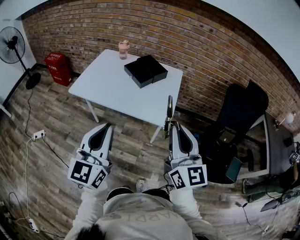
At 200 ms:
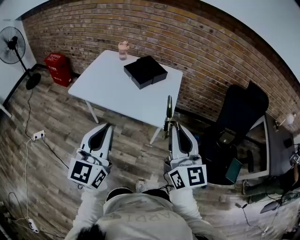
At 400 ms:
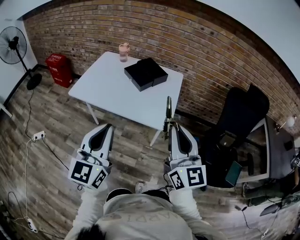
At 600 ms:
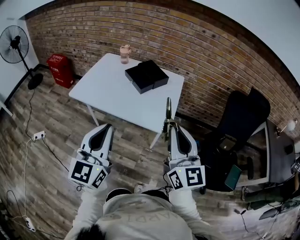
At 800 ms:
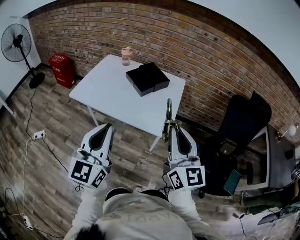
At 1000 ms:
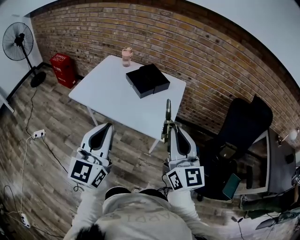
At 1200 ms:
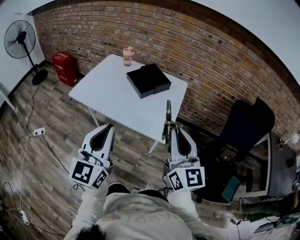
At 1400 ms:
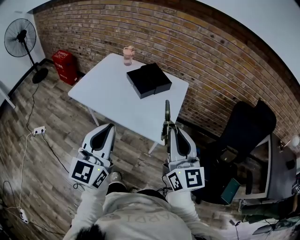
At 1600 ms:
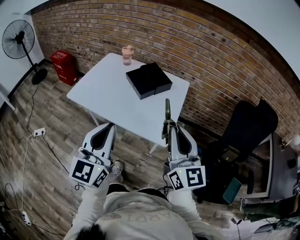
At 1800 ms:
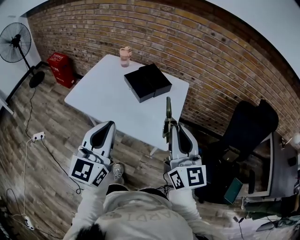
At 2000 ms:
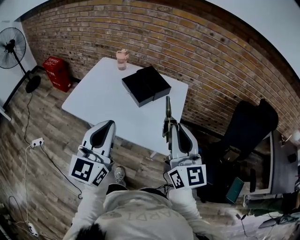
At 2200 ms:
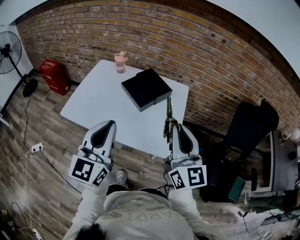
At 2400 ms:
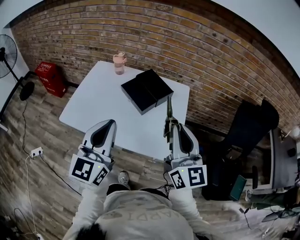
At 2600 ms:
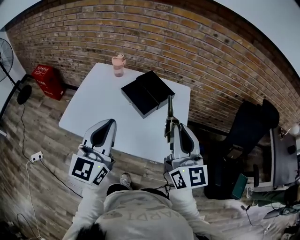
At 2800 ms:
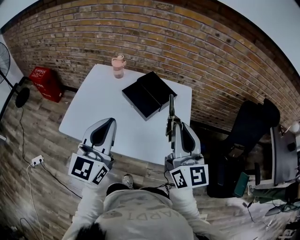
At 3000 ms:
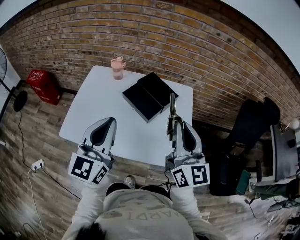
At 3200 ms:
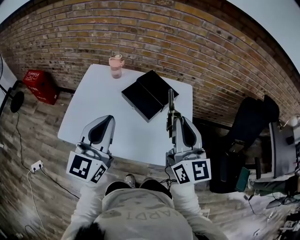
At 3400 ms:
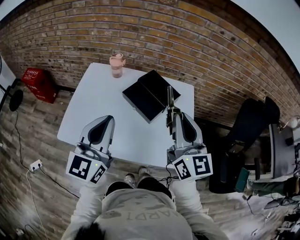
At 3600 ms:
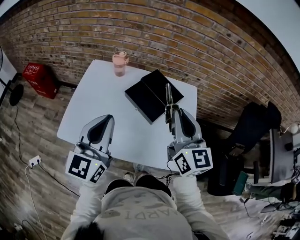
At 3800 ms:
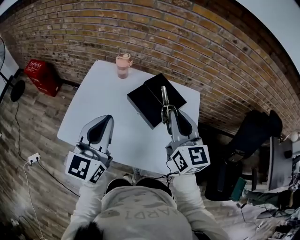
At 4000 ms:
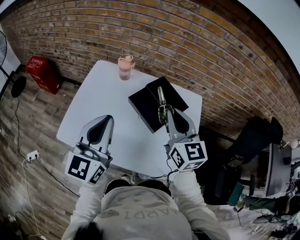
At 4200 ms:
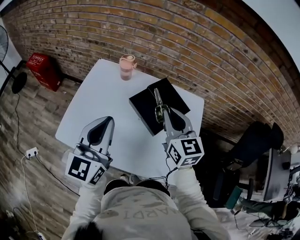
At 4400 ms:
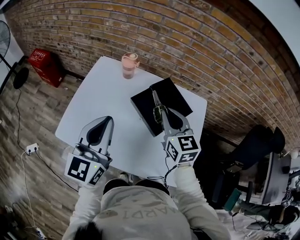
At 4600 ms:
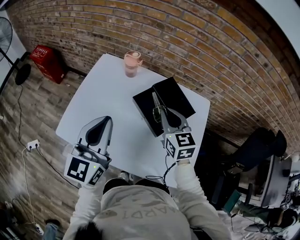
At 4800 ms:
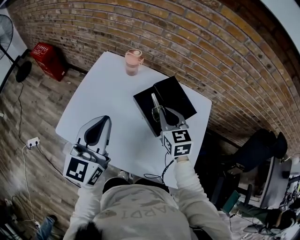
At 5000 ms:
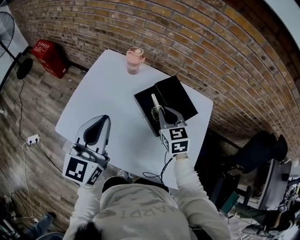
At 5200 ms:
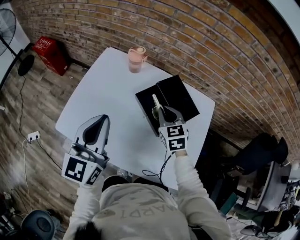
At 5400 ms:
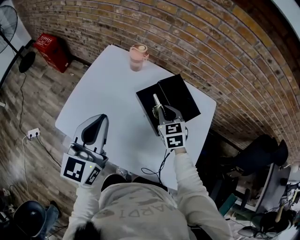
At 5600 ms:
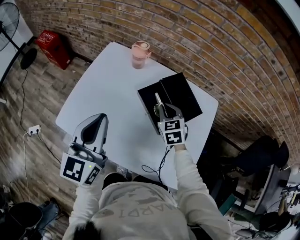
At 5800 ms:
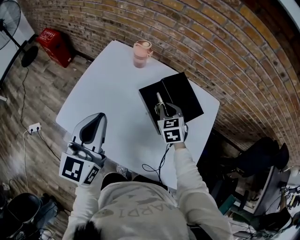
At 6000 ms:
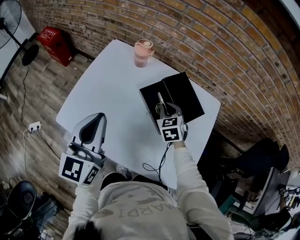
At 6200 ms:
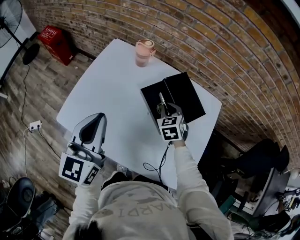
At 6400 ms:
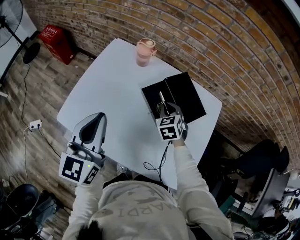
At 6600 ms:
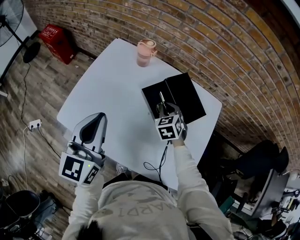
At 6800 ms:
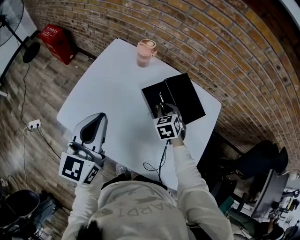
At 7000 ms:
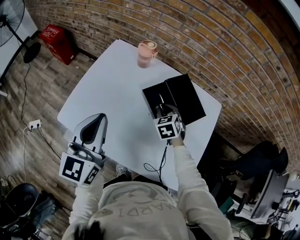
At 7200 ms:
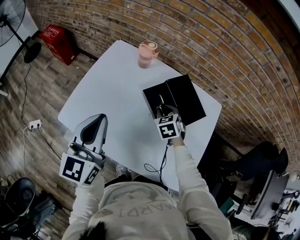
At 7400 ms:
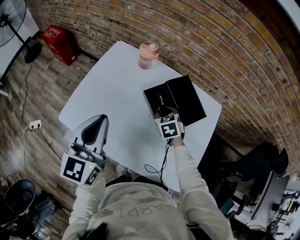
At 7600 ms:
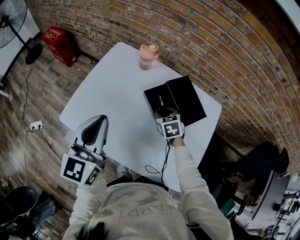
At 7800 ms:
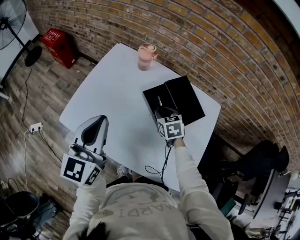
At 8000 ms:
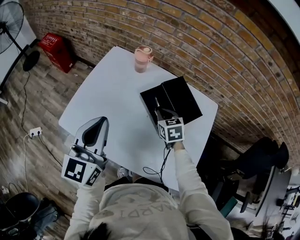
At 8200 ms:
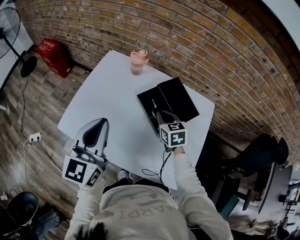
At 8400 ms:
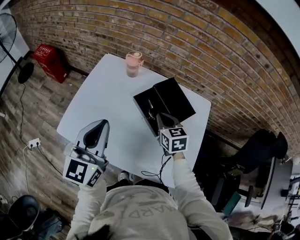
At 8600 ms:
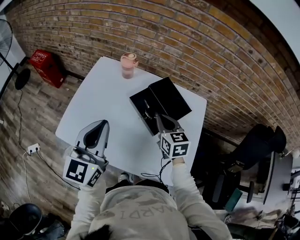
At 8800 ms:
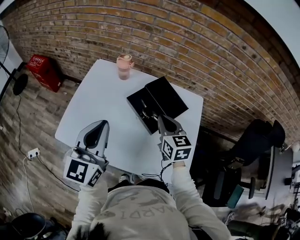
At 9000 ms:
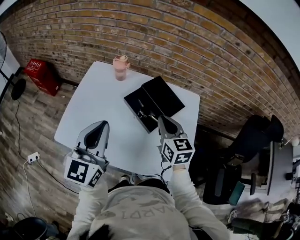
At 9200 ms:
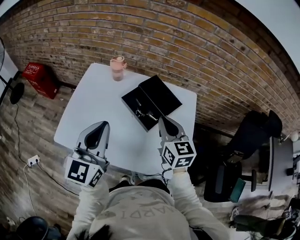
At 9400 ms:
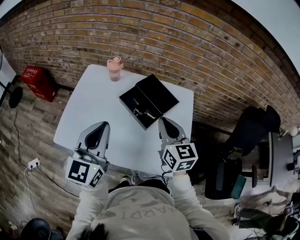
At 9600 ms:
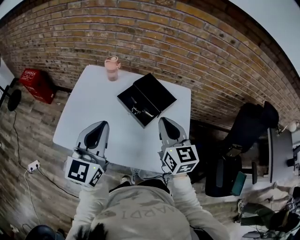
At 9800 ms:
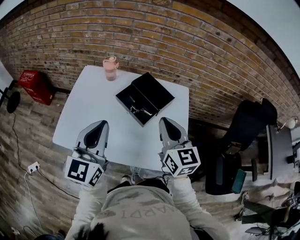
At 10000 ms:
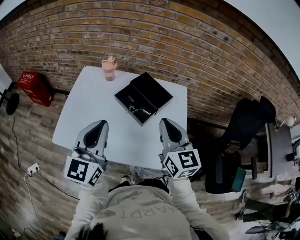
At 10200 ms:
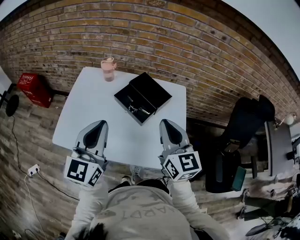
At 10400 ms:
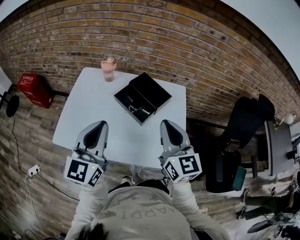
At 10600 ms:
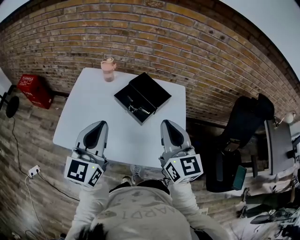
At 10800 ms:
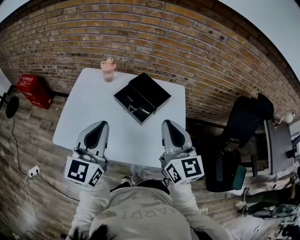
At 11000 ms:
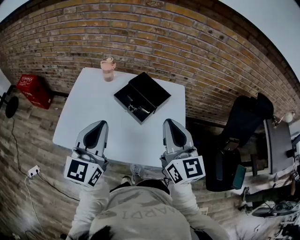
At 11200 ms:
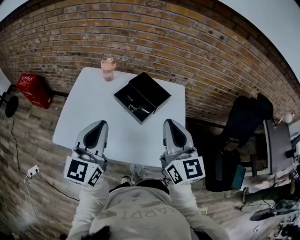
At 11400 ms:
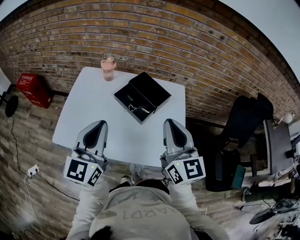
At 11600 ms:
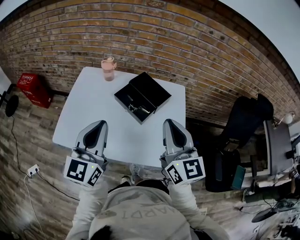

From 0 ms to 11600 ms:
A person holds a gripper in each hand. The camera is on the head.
From 0 ms to 1400 ms: The grippers both shift forward by some 10 cm.
From 1400 ms to 2800 ms: Both grippers move forward and to the left, about 25 cm.
From 2800 ms to 4400 ms: The right gripper moves forward, downward and to the left, about 30 cm, and changes its angle by approximately 30 degrees. The left gripper moves forward and to the left, roughly 15 cm.
From 4400 ms to 5800 ms: The right gripper is displaced downward and forward by about 20 cm, and changes its angle by approximately 30 degrees.
From 5800 ms to 7200 ms: The grippers make only small movements.
From 7200 ms to 8800 ms: The left gripper moves approximately 5 cm. The right gripper moves upward and backward, roughly 20 cm, and swivels some 40 degrees.
From 8800 ms to 10200 ms: The right gripper is displaced backward and upward by roughly 20 cm, and swivels some 20 degrees, while the left gripper goes roughly 5 cm backward.
From 10200 ms to 11600 ms: The right gripper moves some 5 cm.

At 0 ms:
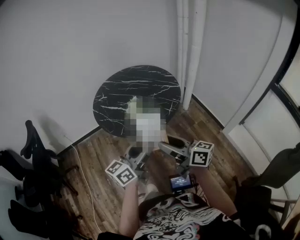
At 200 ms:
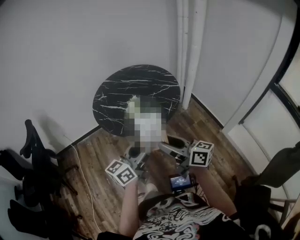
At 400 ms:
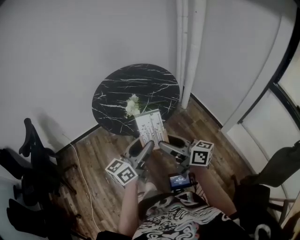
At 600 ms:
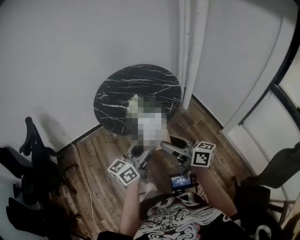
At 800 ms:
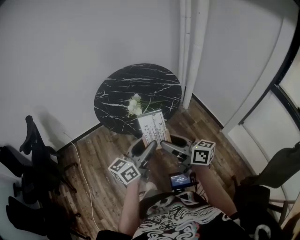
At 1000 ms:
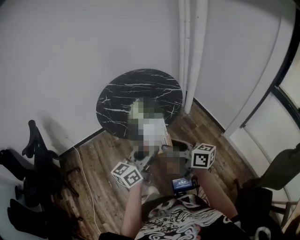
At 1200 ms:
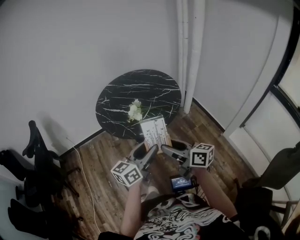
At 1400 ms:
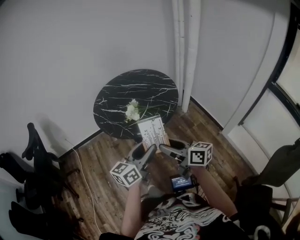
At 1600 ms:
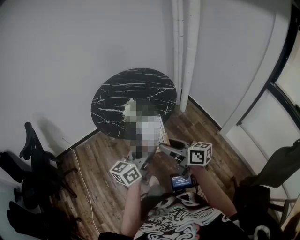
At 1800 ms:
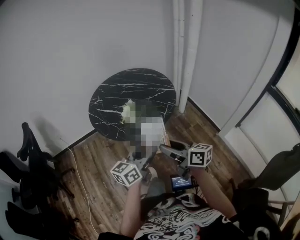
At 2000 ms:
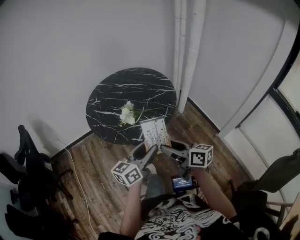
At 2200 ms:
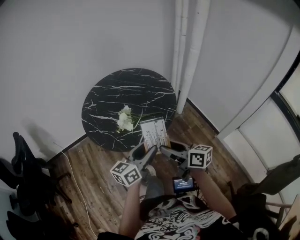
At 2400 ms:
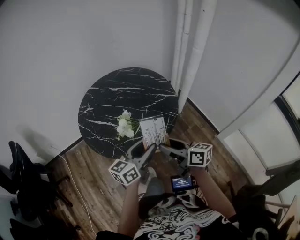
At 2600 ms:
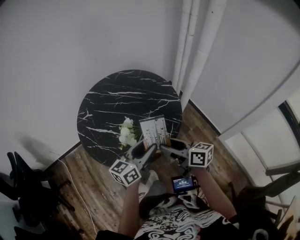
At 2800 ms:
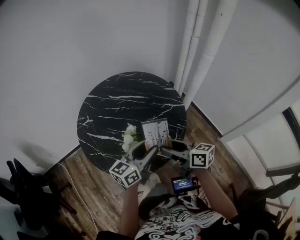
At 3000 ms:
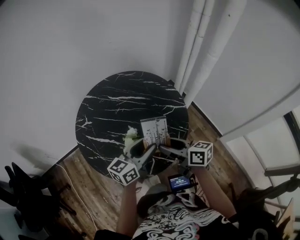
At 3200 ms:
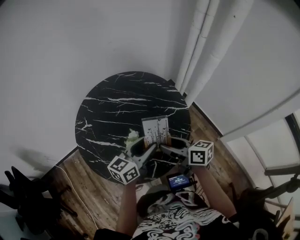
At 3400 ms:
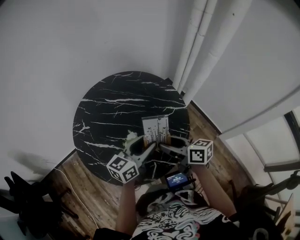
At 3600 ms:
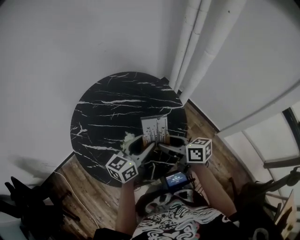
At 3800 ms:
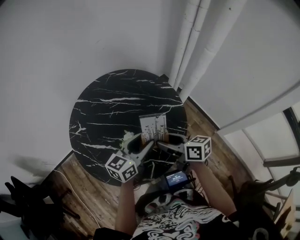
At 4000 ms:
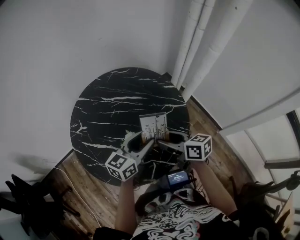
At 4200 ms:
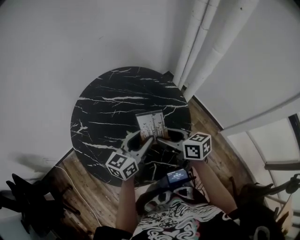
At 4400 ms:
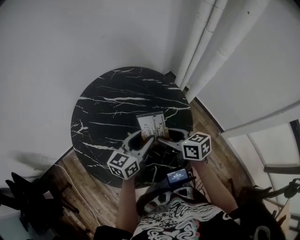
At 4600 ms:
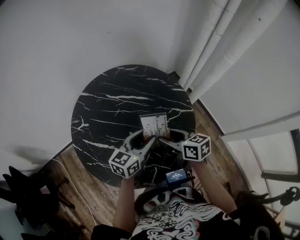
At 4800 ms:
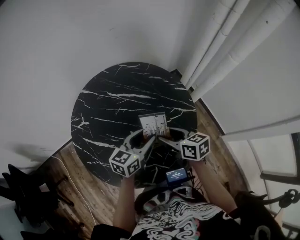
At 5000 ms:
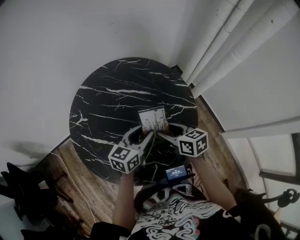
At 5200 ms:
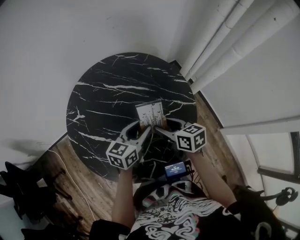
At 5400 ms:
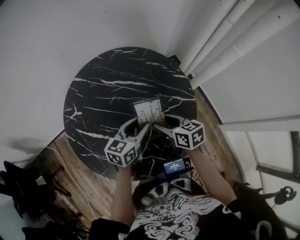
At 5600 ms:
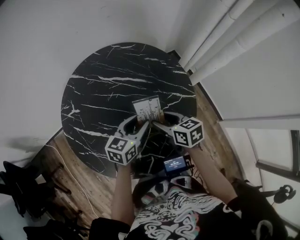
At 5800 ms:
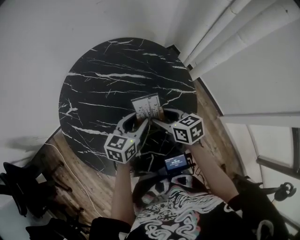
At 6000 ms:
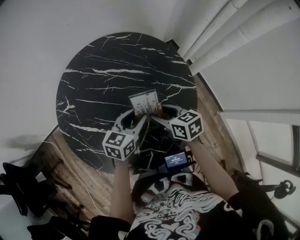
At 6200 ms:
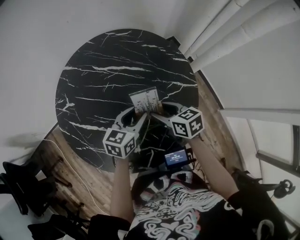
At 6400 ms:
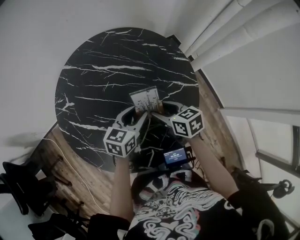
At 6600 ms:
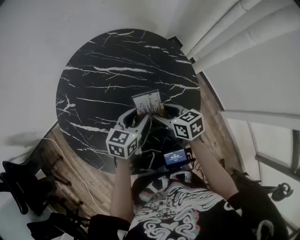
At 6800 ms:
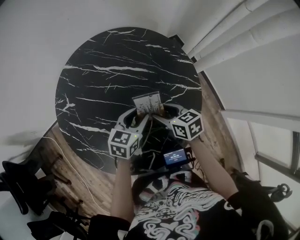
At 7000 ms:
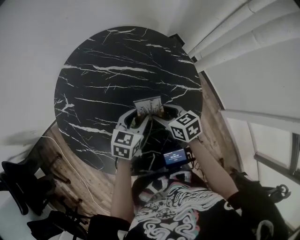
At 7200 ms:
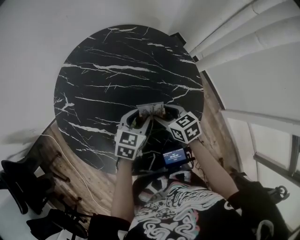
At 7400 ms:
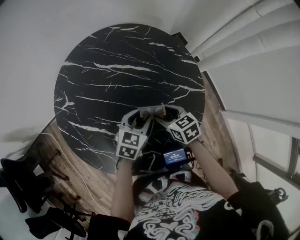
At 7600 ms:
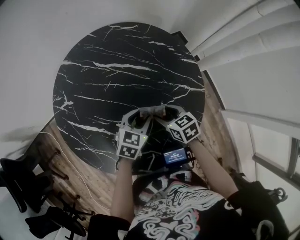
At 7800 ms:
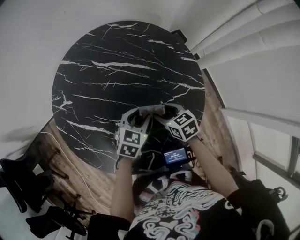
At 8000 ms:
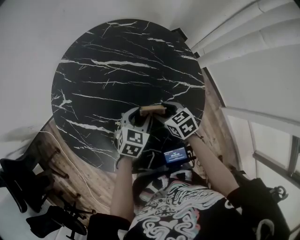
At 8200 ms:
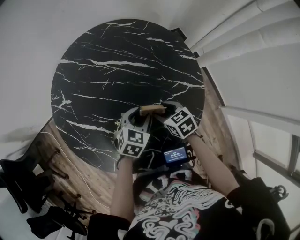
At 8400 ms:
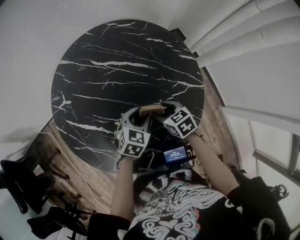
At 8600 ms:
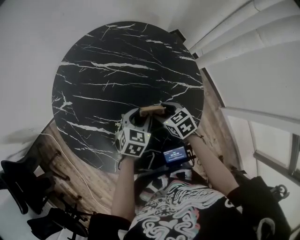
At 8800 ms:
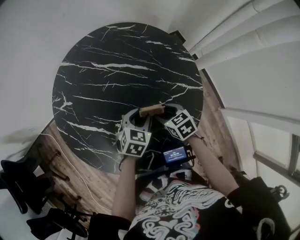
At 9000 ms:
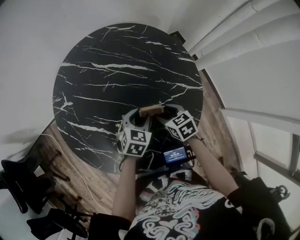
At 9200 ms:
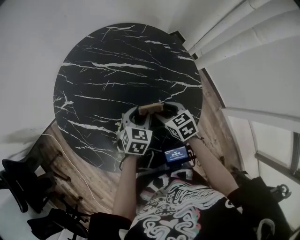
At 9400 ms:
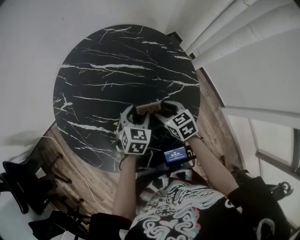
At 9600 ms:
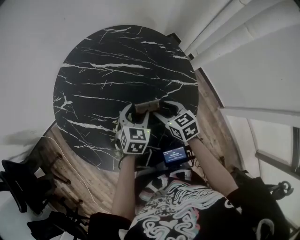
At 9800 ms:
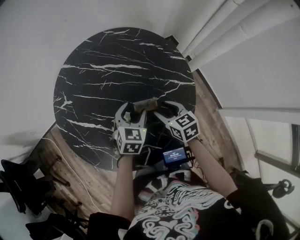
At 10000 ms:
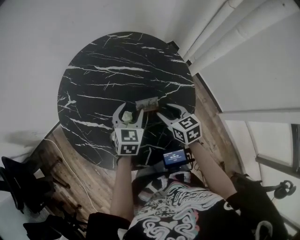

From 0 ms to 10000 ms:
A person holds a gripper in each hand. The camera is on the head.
From 0 ms to 1400 ms: The grippers stay close to where they were, moving slightly.
From 1400 ms to 2800 ms: Both grippers move forward, approximately 30 cm.
From 2800 ms to 4200 ms: Both grippers move forward, some 15 cm.
From 4200 ms to 5800 ms: Both grippers move downward and forward, approximately 10 cm.
From 5800 ms to 7200 ms: Both grippers move downward, some 5 cm.
From 7200 ms to 8600 ms: The grippers make only small movements.
From 8600 ms to 10000 ms: Both grippers move upward, about 10 cm.

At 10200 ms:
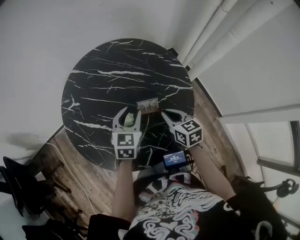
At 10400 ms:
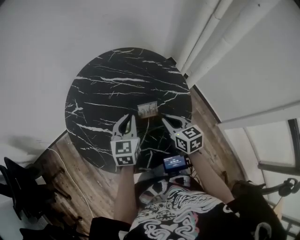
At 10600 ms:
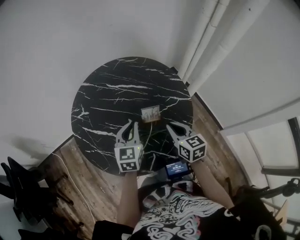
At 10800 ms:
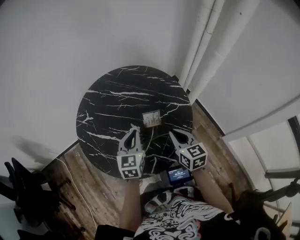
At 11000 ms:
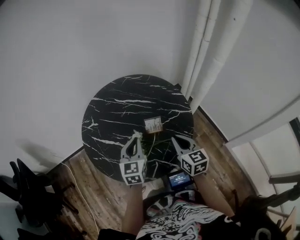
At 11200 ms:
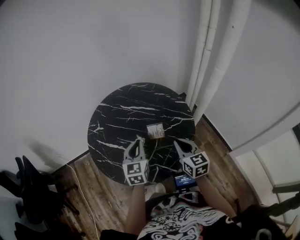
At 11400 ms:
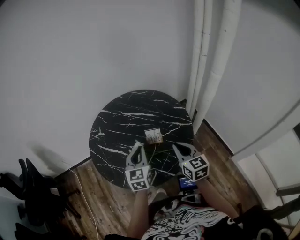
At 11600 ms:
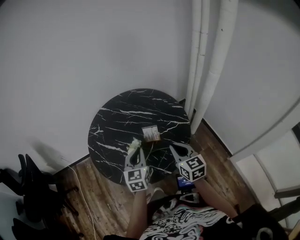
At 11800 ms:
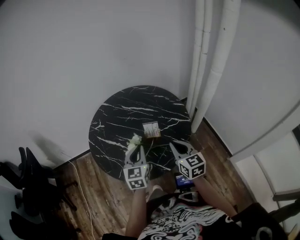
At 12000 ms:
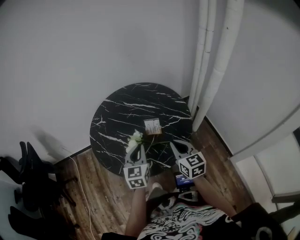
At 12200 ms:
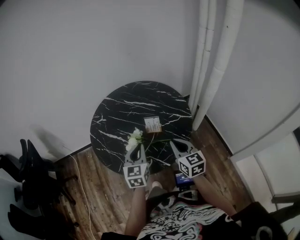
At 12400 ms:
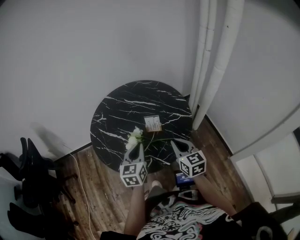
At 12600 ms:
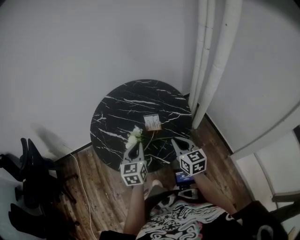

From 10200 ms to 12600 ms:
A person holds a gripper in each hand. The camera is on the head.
From 10200 ms to 11400 ms: The right gripper moves upward and backward, approximately 15 cm, and turns by roughly 20 degrees, while the left gripper goes some 15 cm backward and upward, turns by some 20 degrees, and closes its fingers.
From 11400 ms to 12600 ms: The left gripper shifts approximately 5 cm backward.
